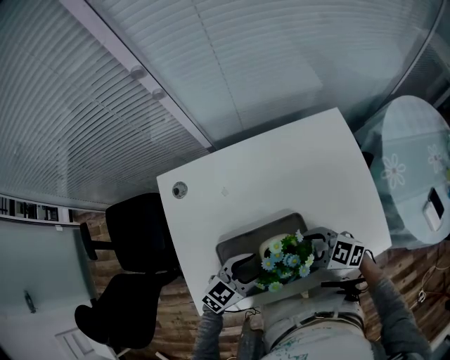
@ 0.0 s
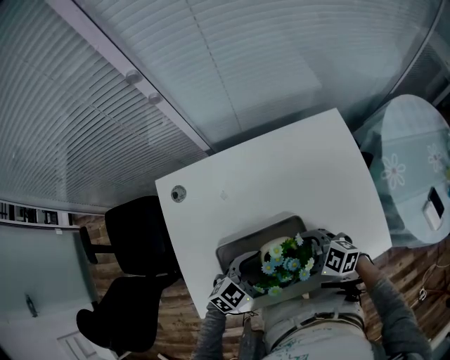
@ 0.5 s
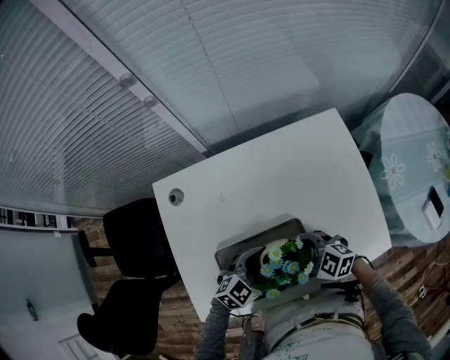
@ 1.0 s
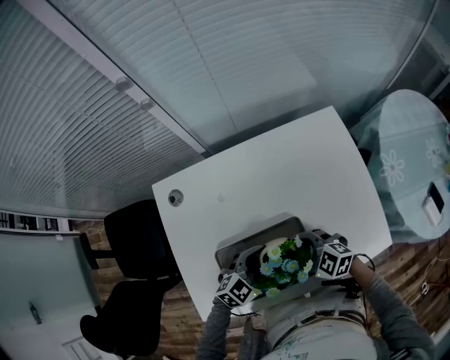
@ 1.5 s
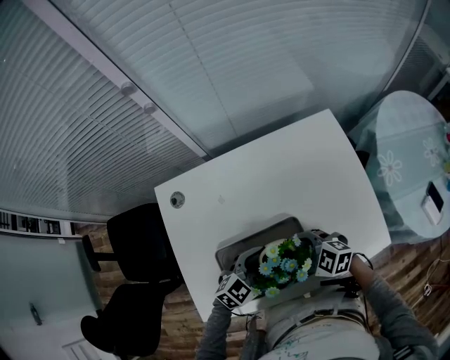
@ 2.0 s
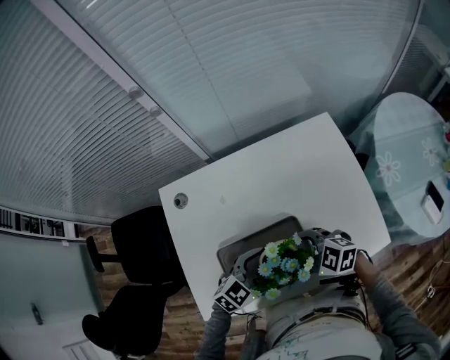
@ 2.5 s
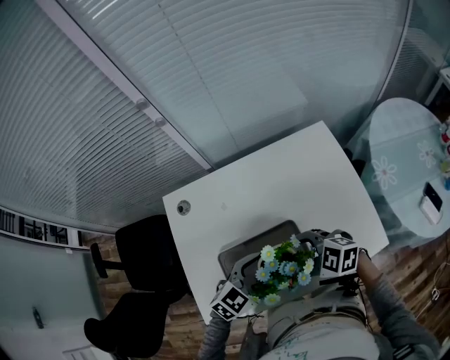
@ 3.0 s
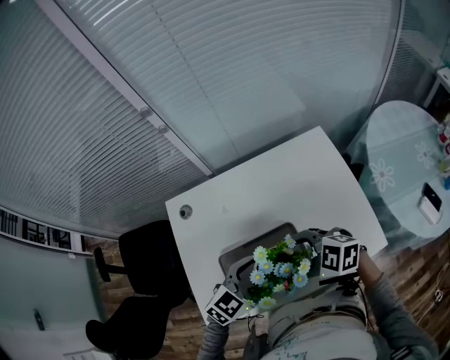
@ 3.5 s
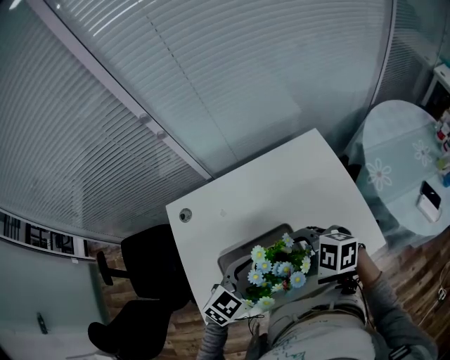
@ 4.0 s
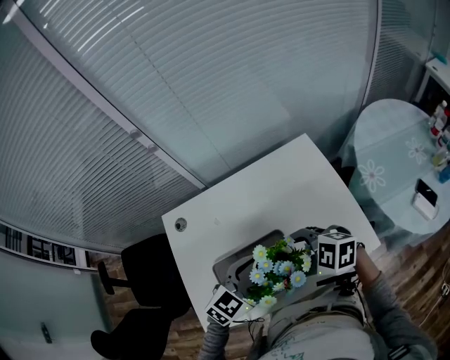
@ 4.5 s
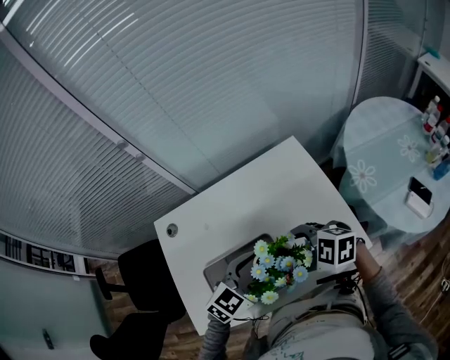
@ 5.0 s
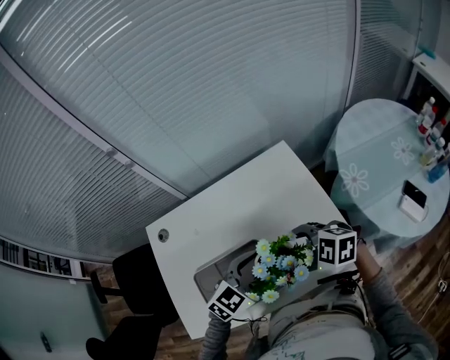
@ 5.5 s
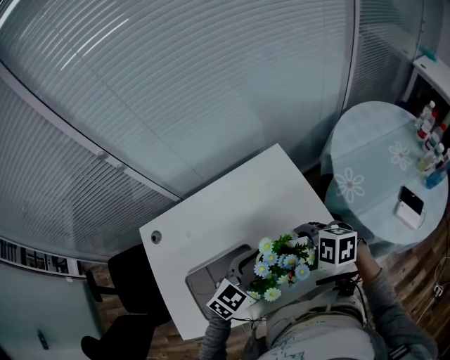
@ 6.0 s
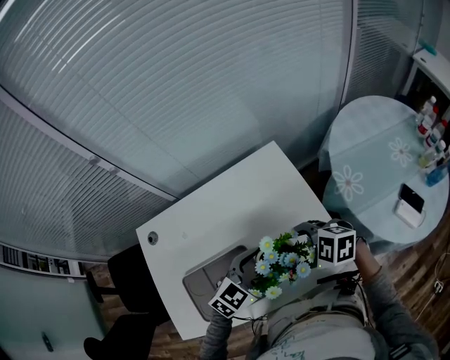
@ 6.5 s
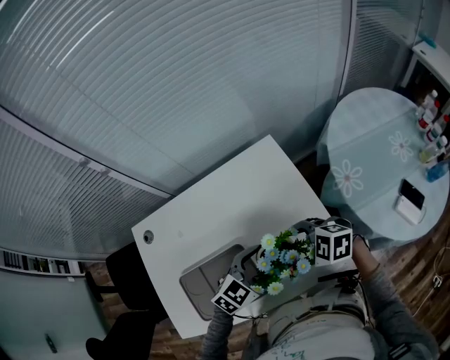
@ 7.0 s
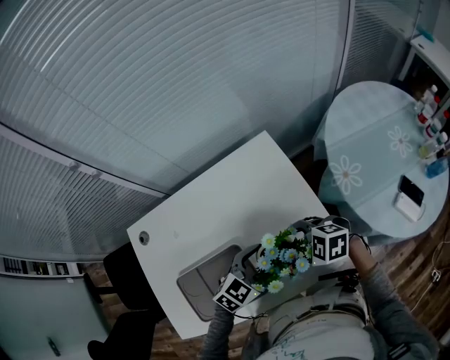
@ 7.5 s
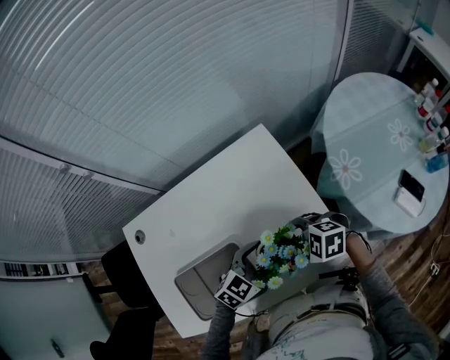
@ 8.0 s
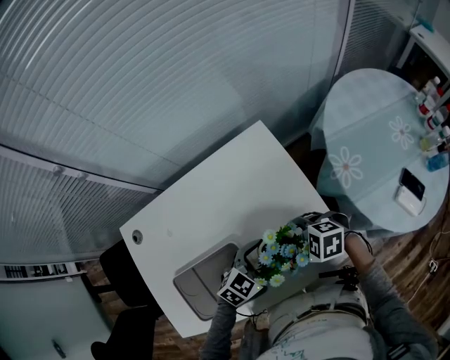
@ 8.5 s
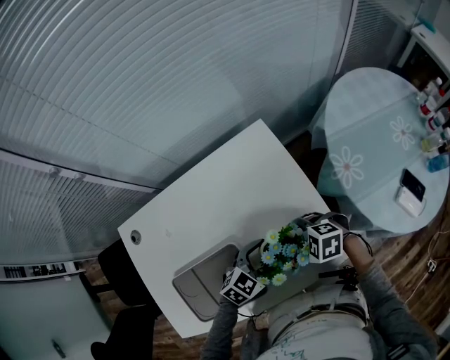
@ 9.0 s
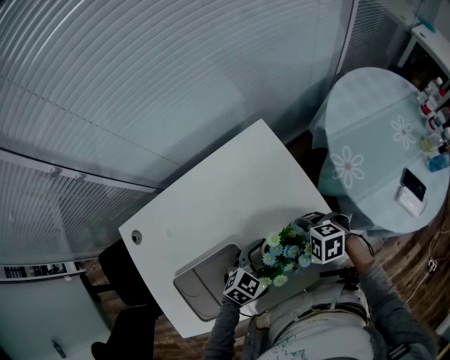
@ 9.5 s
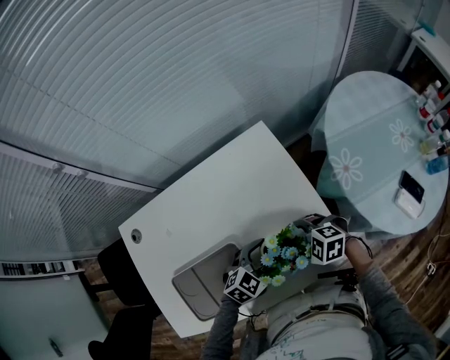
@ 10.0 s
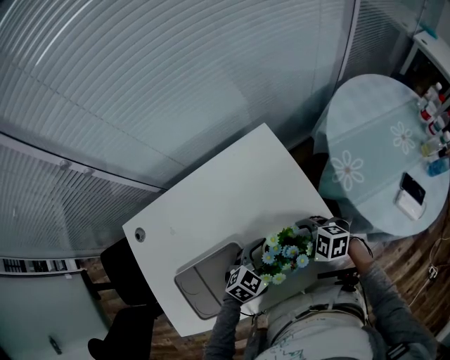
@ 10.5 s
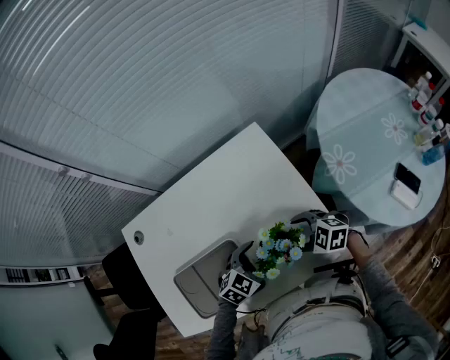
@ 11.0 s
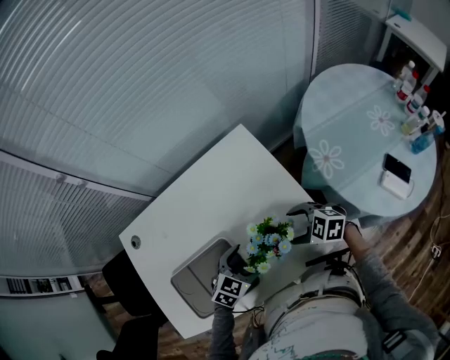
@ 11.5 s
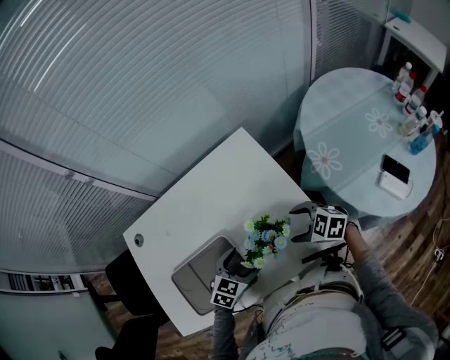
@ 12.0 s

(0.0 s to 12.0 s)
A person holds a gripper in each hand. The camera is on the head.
0.0 s - 2.0 s: The left gripper opens up.
2.0 s - 4.0 s: Both grippers travel together upward, approximately 15 cm.
4.0 s - 6.0 s: The left gripper shifts by some 15 cm. The right gripper moves about 15 cm.
6.0 s - 8.0 s: Both grippers travel together downward, about 10 cm.
8.0 s - 10.0 s: The grippers stay close to where they were, moving slightly.
10.0 s - 12.0 s: The left gripper shifts by roughly 5 cm. The right gripper ends up some 5 cm from where it was.

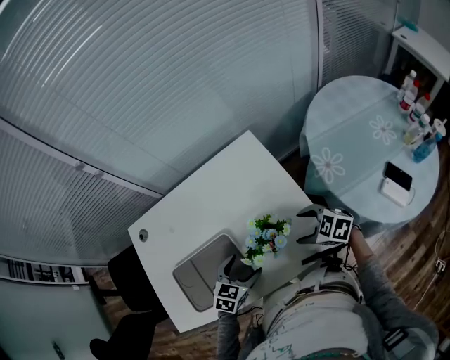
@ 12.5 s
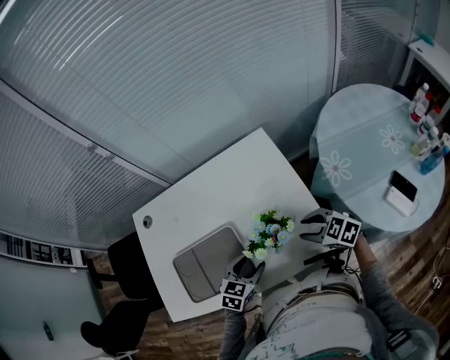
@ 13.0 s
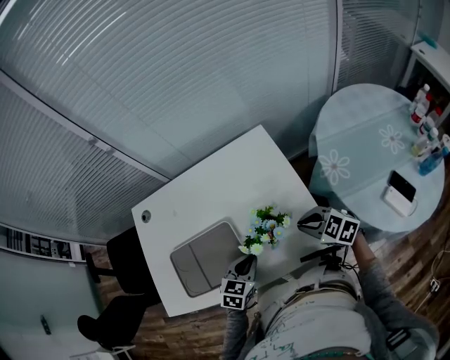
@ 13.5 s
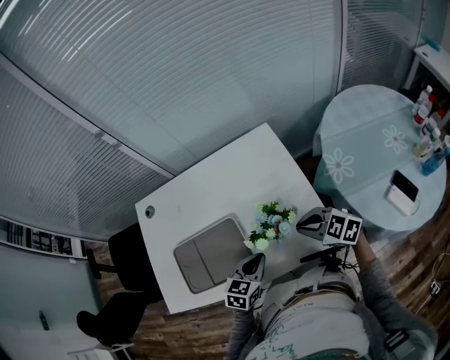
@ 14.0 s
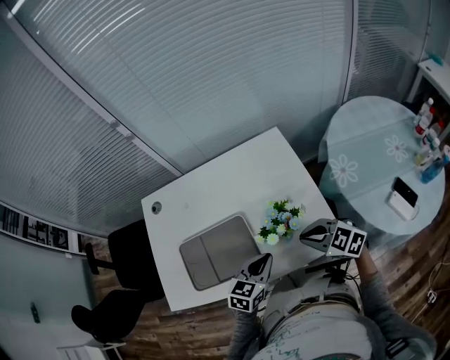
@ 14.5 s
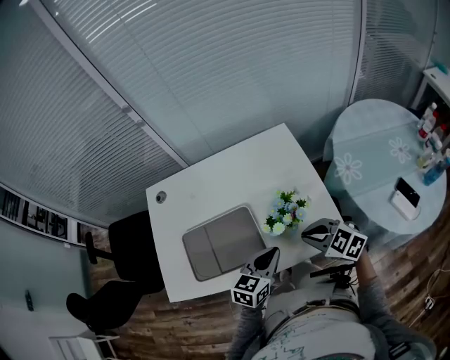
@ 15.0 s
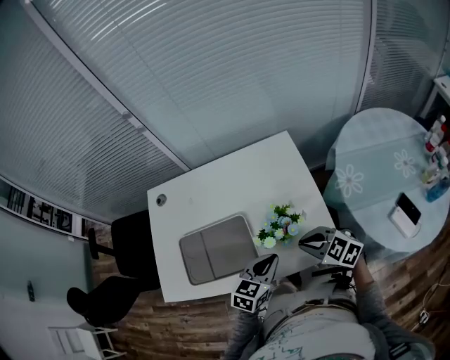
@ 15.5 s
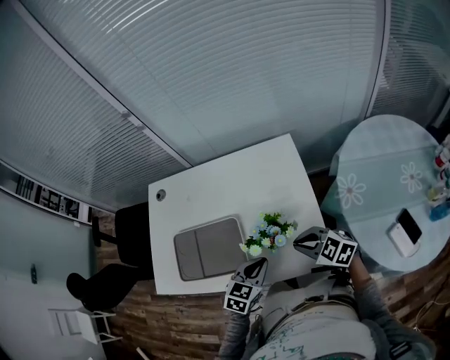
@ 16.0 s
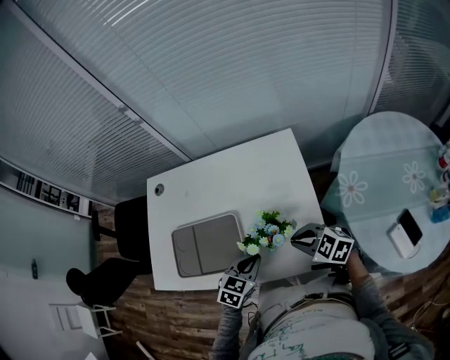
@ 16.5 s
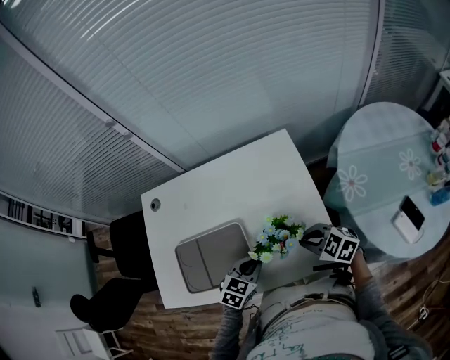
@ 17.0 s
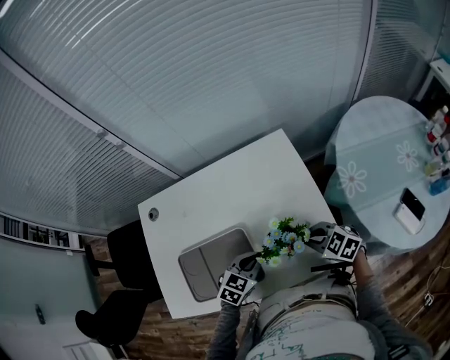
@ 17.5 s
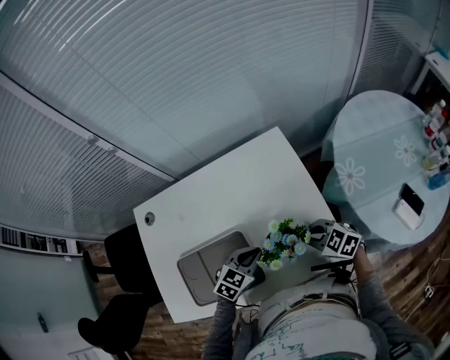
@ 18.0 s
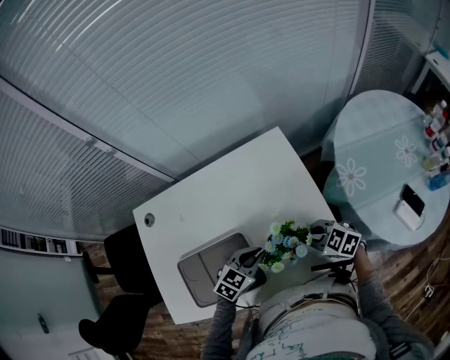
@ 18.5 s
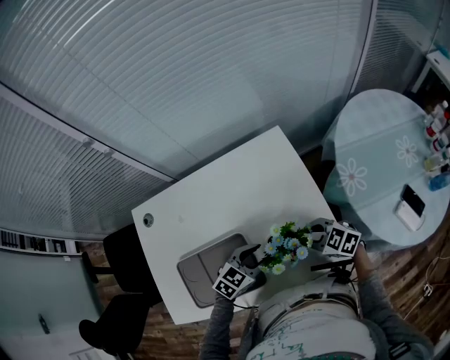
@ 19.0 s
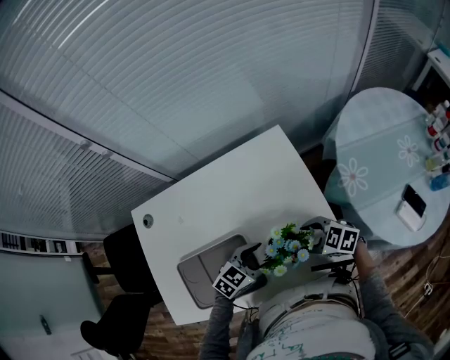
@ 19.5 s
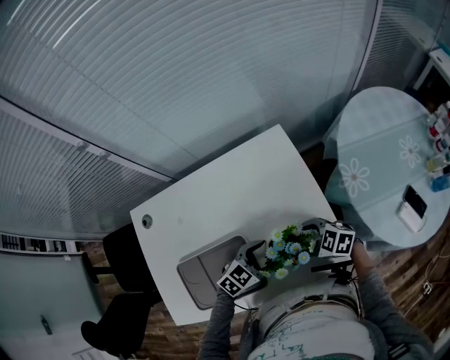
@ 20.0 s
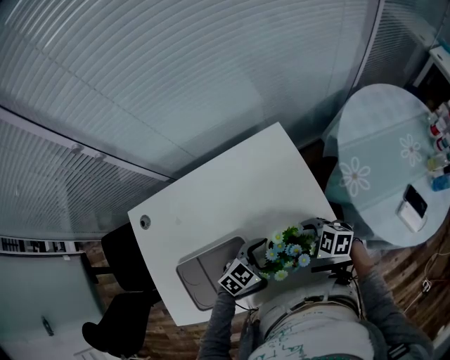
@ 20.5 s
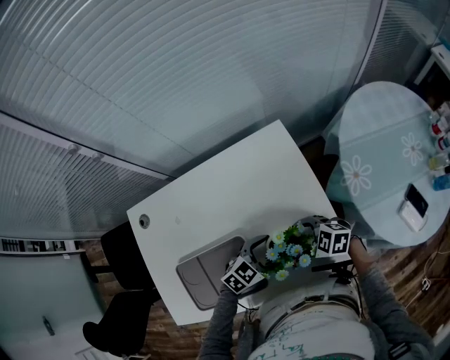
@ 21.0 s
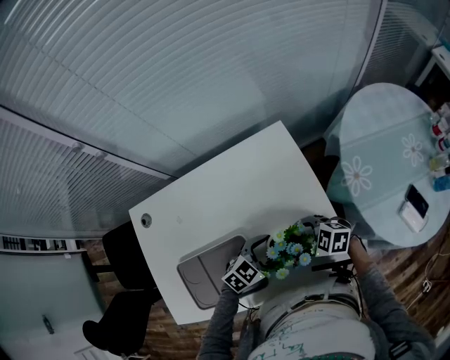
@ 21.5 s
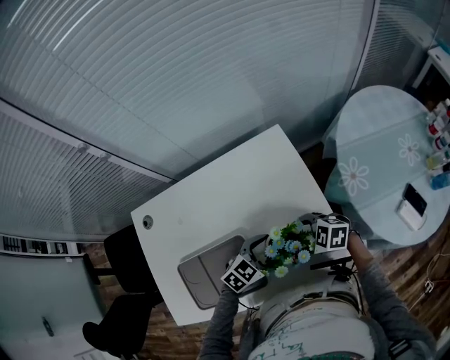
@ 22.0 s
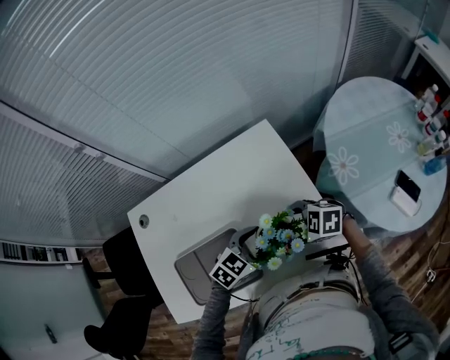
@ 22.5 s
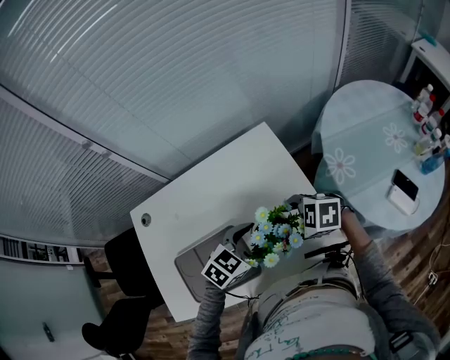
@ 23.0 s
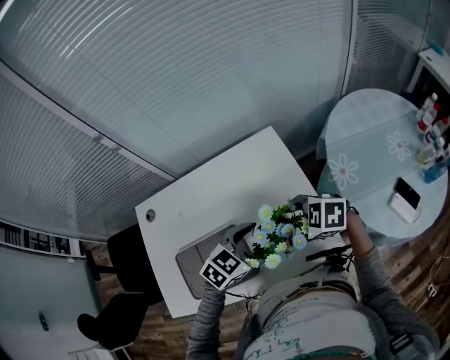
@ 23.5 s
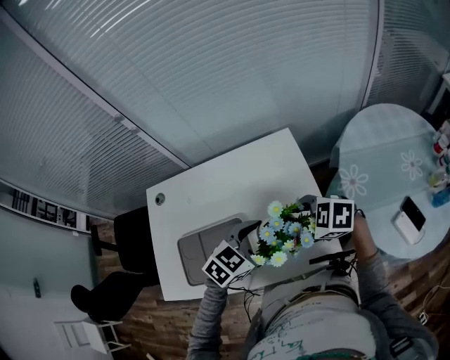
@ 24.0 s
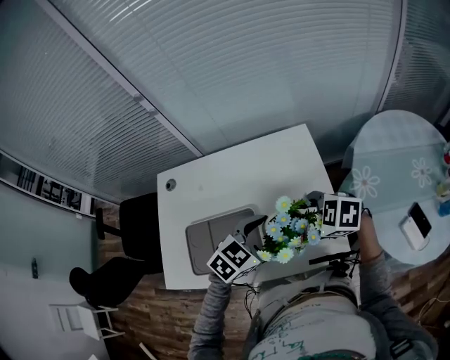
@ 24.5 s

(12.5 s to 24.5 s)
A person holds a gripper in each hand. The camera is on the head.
12.5 s - 14.5 s: The left gripper heads upward and backward, covering some 10 cm, and closes up. The right gripper travels upward and to the left by roughly 10 cm, and closes its fingers.
14.5 s - 16.5 s: The left gripper moves roughly 5 cm. Meanwhile the right gripper ends up approximately 5 cm from where it was.
16.5 s - 18.5 s: The right gripper shifts by roughly 5 cm. The left gripper changes place by roughly 10 cm, and rotates some 30 degrees.
18.5 s - 20.5 s: The left gripper opens up; the right gripper opens its fingers.
20.5 s - 22.5 s: Both grippers travel together upward, about 5 cm.
22.5 s - 24.5 s: The two grippers go roughly 10 cm upward.

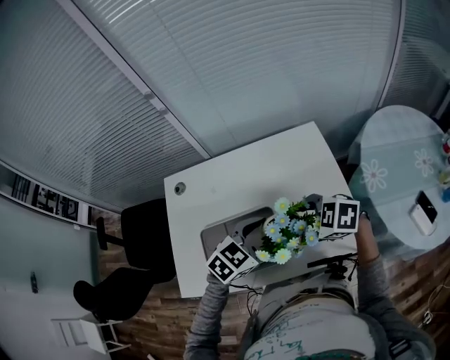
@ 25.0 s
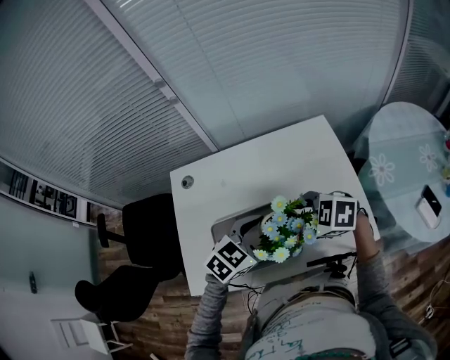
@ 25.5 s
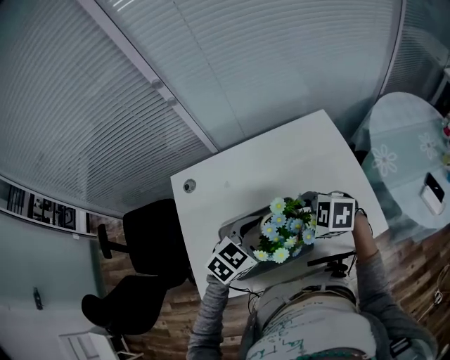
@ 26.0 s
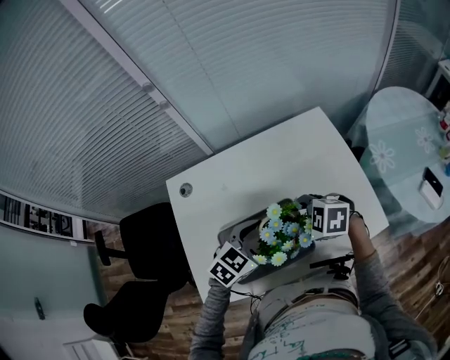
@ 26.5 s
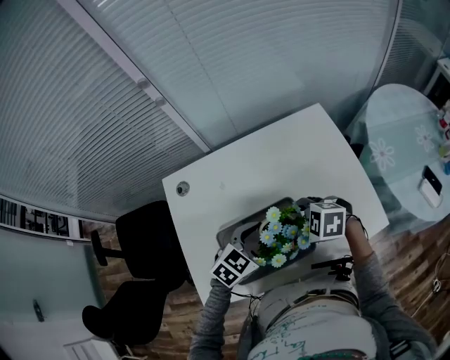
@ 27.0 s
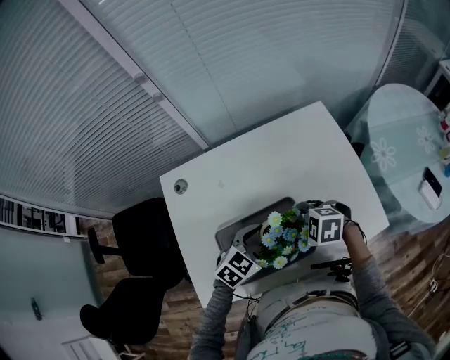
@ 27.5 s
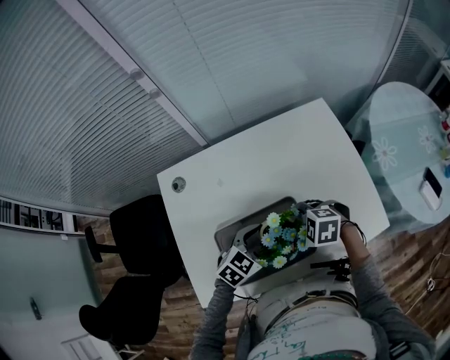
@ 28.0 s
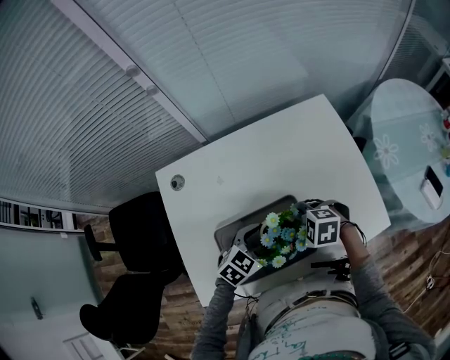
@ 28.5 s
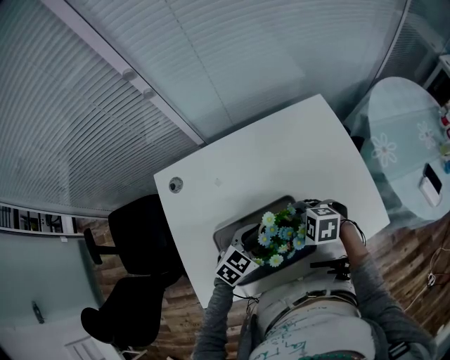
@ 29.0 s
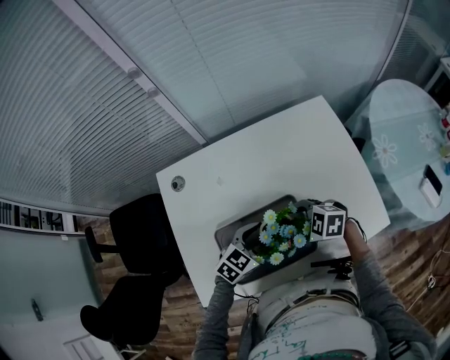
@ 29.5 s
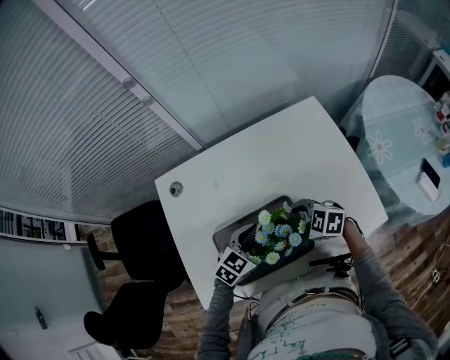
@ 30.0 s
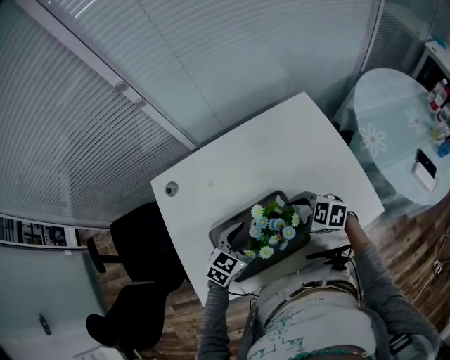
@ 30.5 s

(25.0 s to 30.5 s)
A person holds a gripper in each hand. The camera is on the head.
25.0 s - 27.0 s: The left gripper changes place by roughly 15 cm, while the right gripper moves some 15 cm.
27.0 s - 28.5 s: The two grippers go approximately 5 cm downward.
28.5 s - 30.5 s: The right gripper swivels about 20 degrees.
